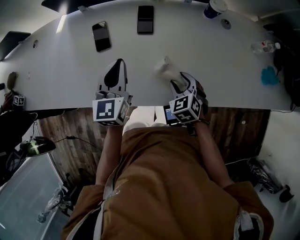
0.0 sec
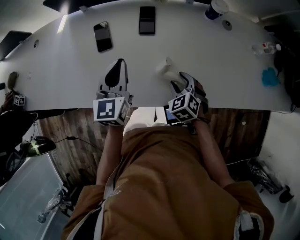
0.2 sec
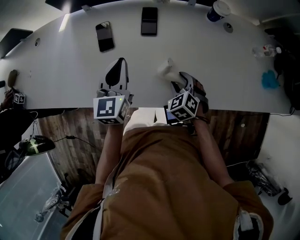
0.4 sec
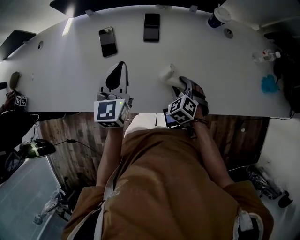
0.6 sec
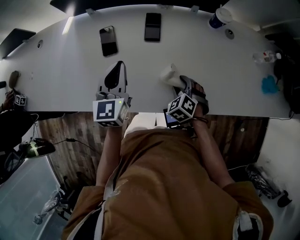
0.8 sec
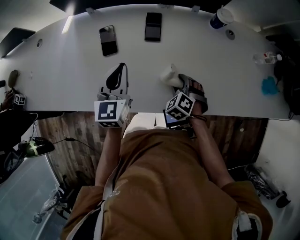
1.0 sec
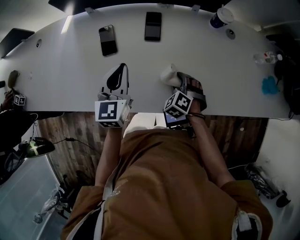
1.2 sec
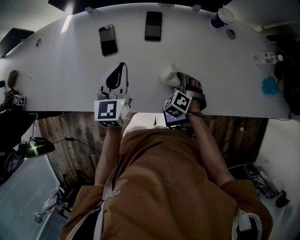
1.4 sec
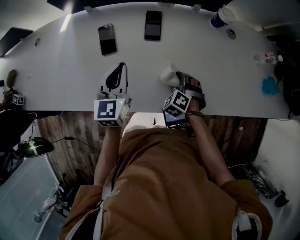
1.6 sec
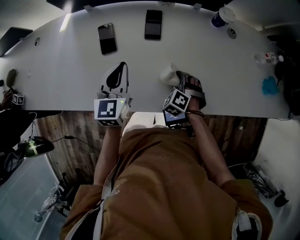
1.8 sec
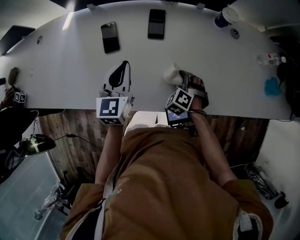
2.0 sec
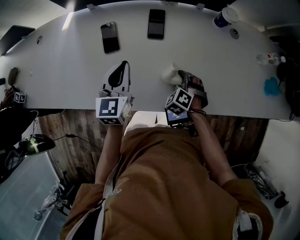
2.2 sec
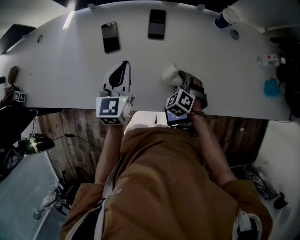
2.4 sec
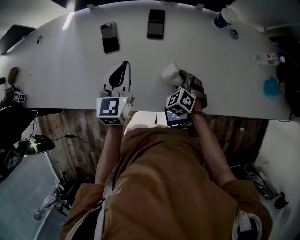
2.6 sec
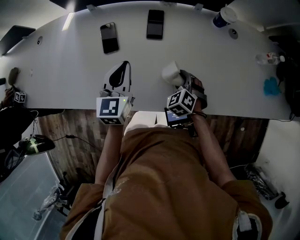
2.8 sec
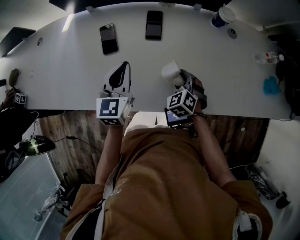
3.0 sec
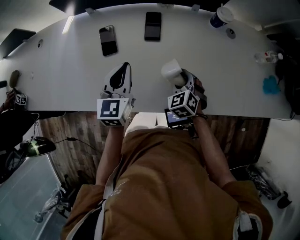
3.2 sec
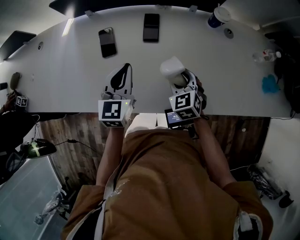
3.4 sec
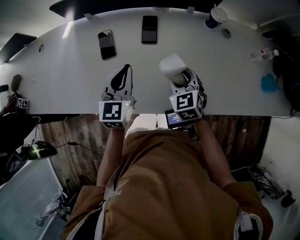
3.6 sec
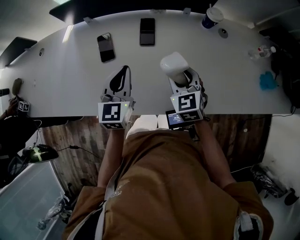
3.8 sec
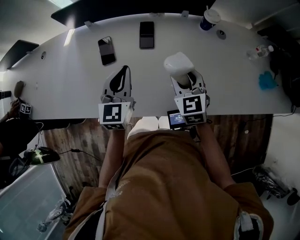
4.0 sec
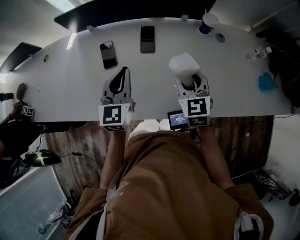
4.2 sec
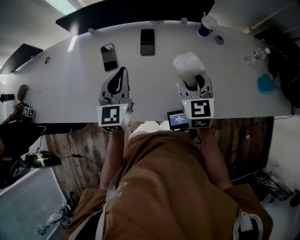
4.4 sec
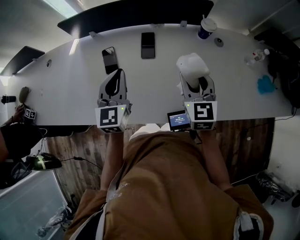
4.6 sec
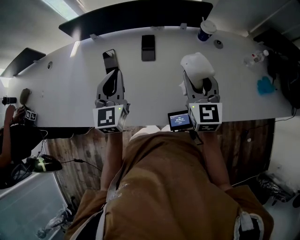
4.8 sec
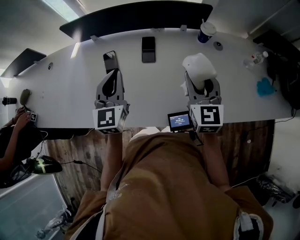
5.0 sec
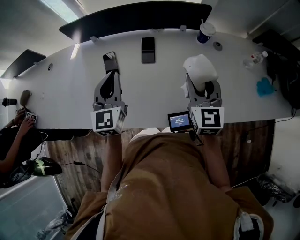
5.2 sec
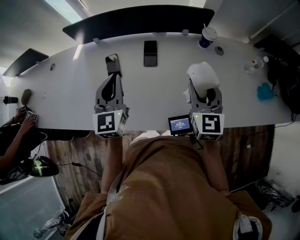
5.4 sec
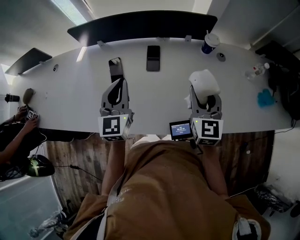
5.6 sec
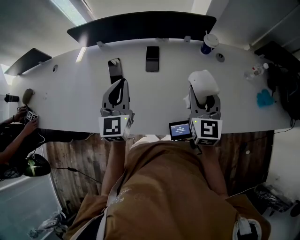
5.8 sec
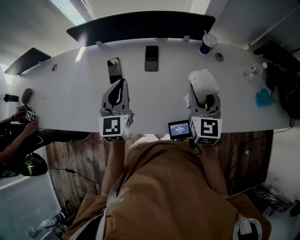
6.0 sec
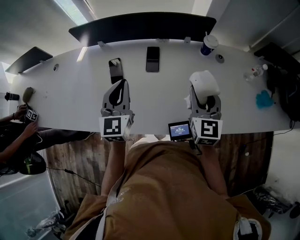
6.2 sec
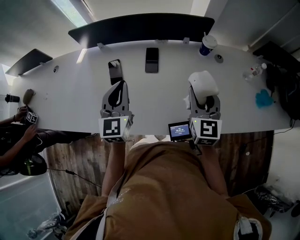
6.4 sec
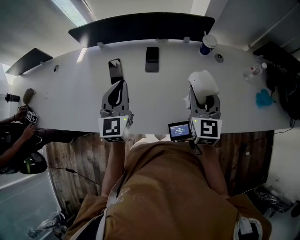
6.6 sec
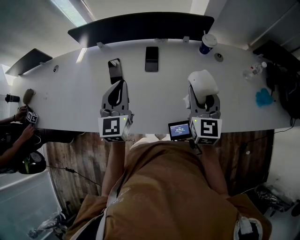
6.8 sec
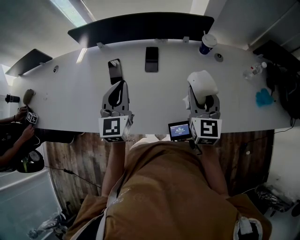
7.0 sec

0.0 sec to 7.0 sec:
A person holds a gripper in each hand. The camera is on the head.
0.0 sec to 1.4 sec: The right gripper moves downward, some 5 cm, and turns by approximately 30 degrees.
1.4 sec to 2.8 sec: The grippers make only small movements.
2.8 sec to 4.2 sec: The right gripper travels upward by approximately 20 cm, and angles its fingers upward, by approximately 30 degrees. The left gripper heads upward, covering about 5 cm.
4.2 sec to 5.6 sec: The right gripper heads upward, covering approximately 5 cm.
5.6 sec to 7.0 sec: Both grippers stay about where they are.

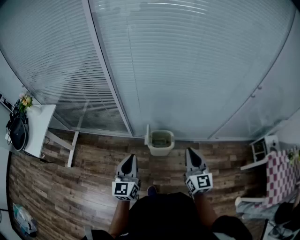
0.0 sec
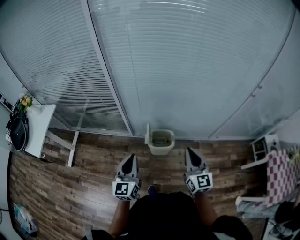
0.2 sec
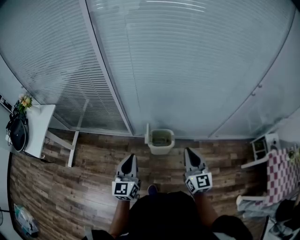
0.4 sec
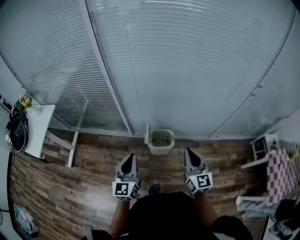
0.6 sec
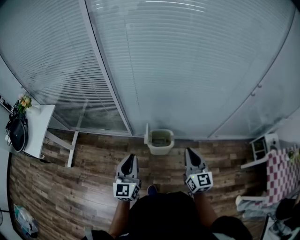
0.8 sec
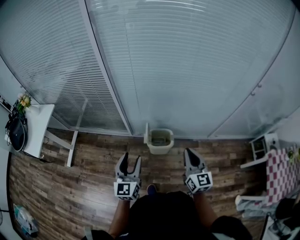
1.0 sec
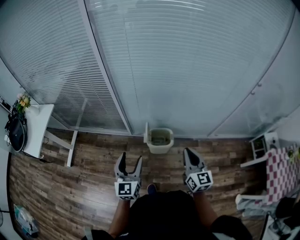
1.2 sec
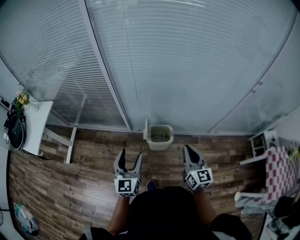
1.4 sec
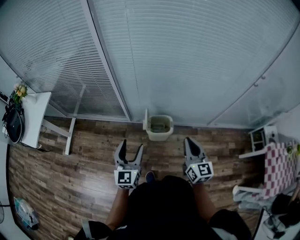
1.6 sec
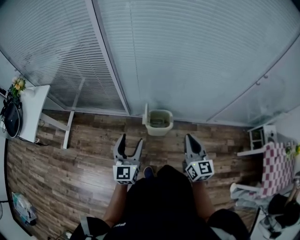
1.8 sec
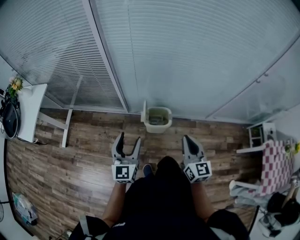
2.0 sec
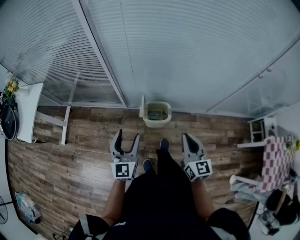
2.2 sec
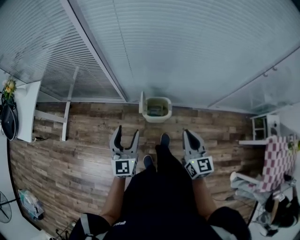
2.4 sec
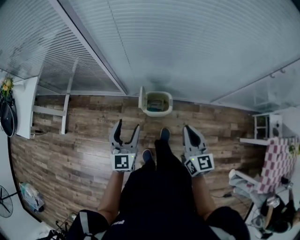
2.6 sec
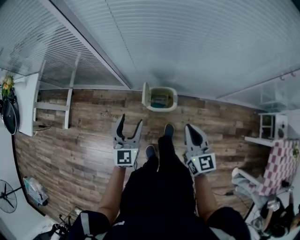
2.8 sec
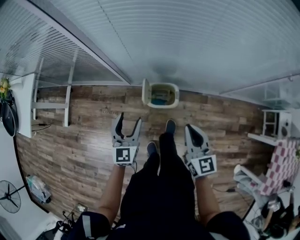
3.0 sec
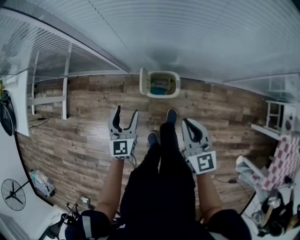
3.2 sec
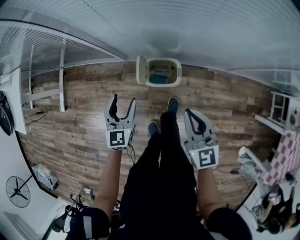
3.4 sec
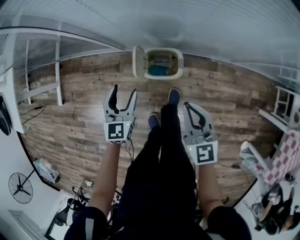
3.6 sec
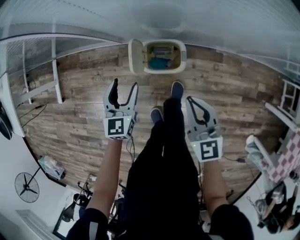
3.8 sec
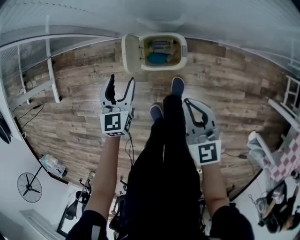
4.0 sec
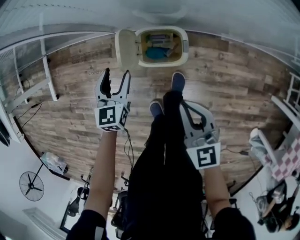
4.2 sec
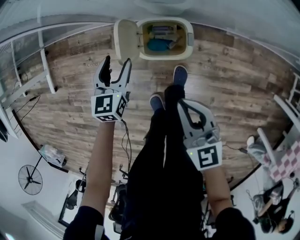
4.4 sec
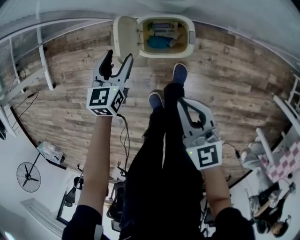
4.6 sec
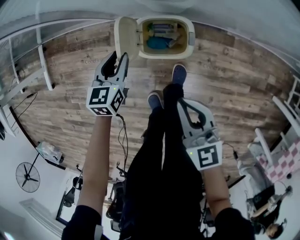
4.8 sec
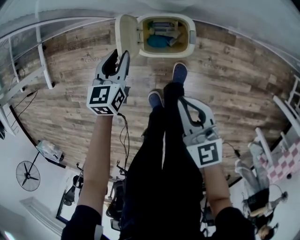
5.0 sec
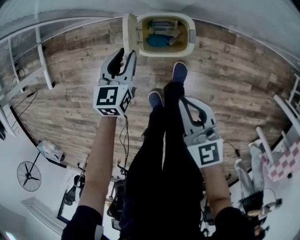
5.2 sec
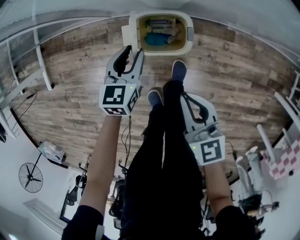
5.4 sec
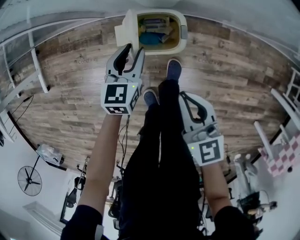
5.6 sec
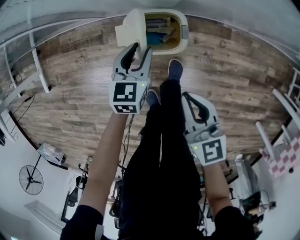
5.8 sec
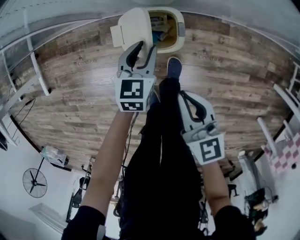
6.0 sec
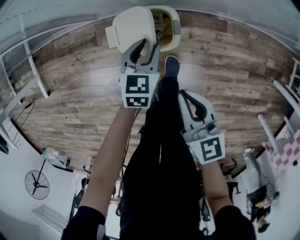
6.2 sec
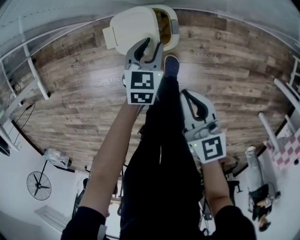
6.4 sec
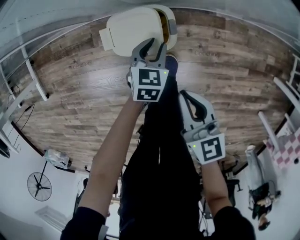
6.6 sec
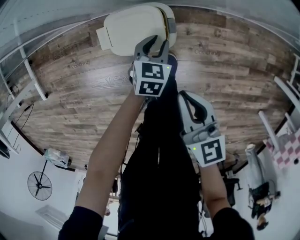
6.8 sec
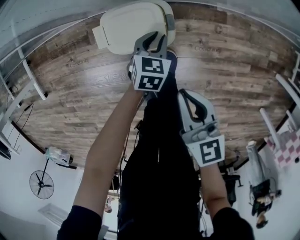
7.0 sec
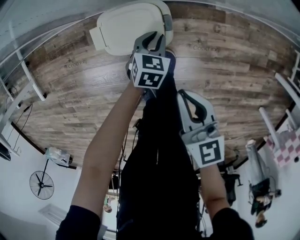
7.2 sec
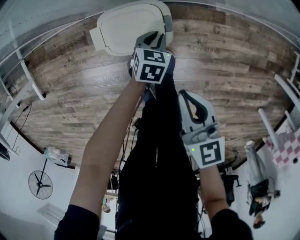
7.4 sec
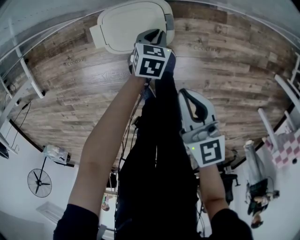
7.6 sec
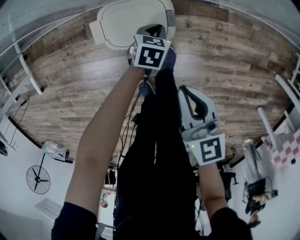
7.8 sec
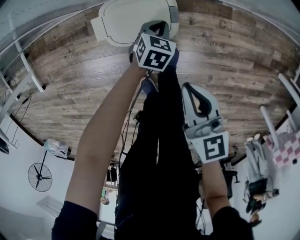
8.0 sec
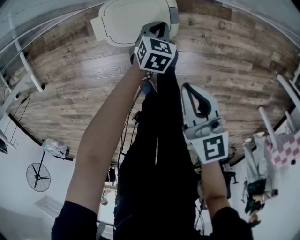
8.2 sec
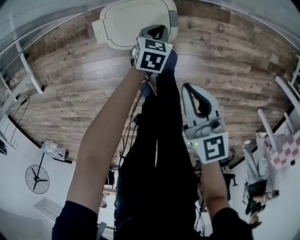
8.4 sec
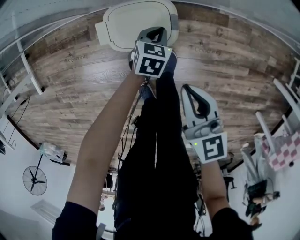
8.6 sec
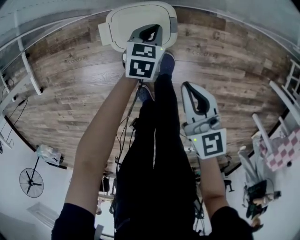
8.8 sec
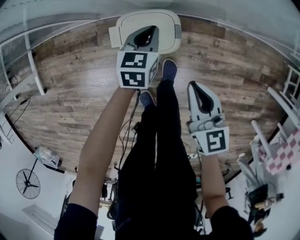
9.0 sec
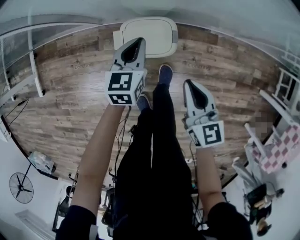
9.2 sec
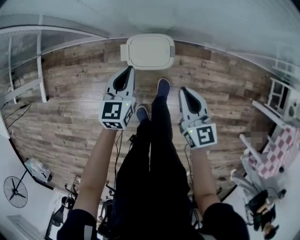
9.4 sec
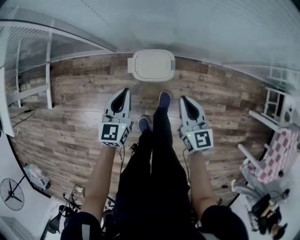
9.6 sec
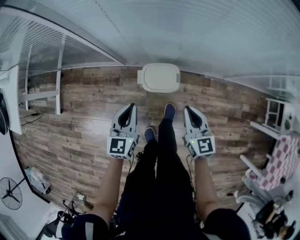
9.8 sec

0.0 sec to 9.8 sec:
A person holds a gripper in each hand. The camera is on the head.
0.0 sec to 1.4 sec: The left gripper opens its fingers.
1.4 sec to 2.8 sec: The right gripper travels forward by roughly 5 cm; the left gripper moves forward, downward and to the right, roughly 15 cm.
2.8 sec to 4.2 sec: The grippers both shift downward by some 25 cm. The left gripper rotates about 30 degrees.
4.2 sec to 5.6 sec: The left gripper heads to the right, covering roughly 10 cm, and closes.
5.6 sec to 7.0 sec: The left gripper heads to the right and downward, covering some 20 cm; the right gripper moves roughly 5 cm.
7.0 sec to 8.4 sec: The left gripper is displaced downward by approximately 5 cm.
8.4 sec to 9.8 sec: The left gripper is displaced upward and to the left by approximately 50 cm, and tilts its fingers approximately 40 degrees upward. Meanwhile the right gripper shifts roughly 15 cm upward.

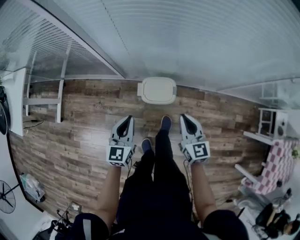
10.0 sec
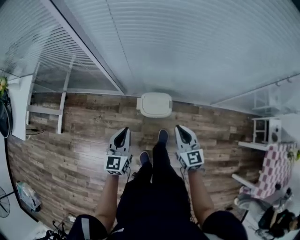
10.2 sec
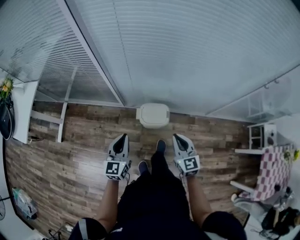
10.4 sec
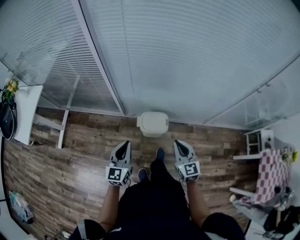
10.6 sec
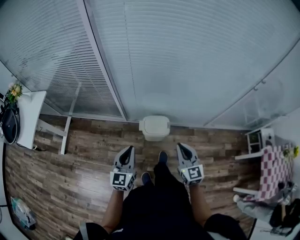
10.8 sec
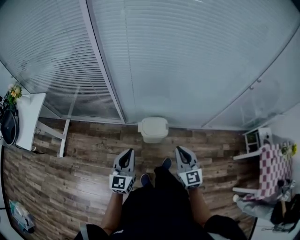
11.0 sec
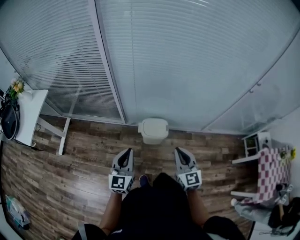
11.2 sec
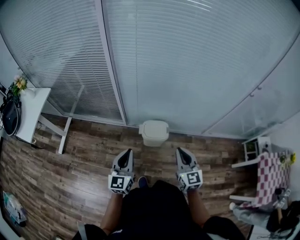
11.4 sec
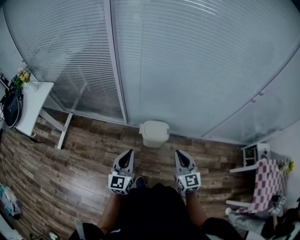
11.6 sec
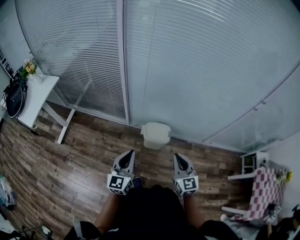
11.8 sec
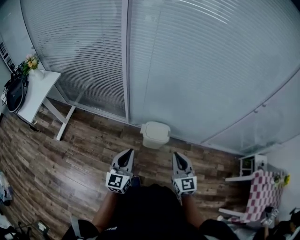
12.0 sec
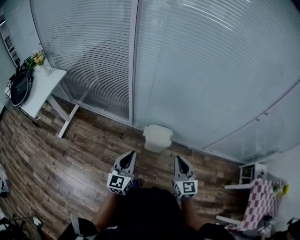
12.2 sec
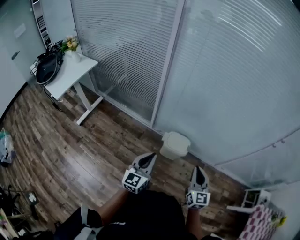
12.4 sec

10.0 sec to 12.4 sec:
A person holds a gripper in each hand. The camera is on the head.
10.0 sec to 11.2 sec: The right gripper is displaced backward and upward by some 20 cm; the left gripper shifts about 20 cm upward and backward.
11.2 sec to 12.4 sec: The right gripper shifts approximately 5 cm to the right.

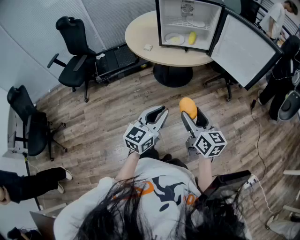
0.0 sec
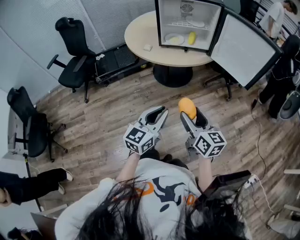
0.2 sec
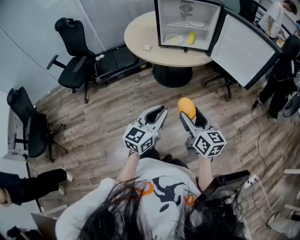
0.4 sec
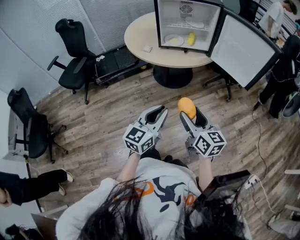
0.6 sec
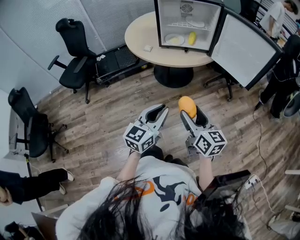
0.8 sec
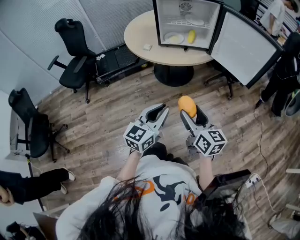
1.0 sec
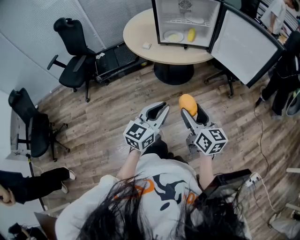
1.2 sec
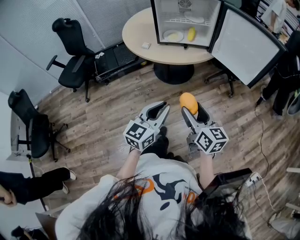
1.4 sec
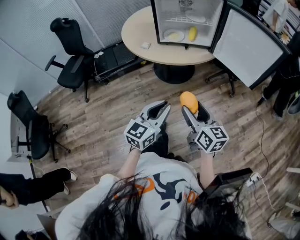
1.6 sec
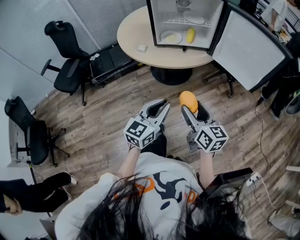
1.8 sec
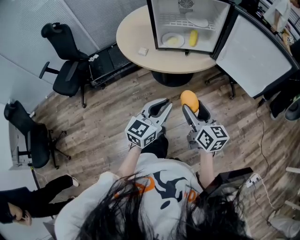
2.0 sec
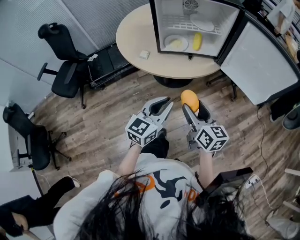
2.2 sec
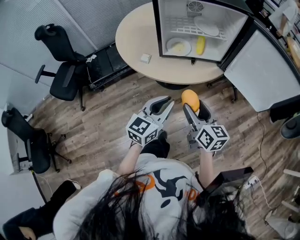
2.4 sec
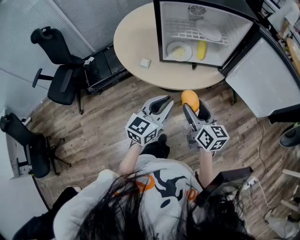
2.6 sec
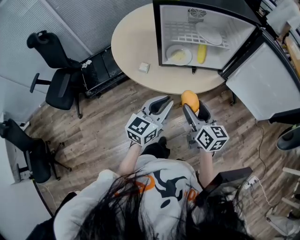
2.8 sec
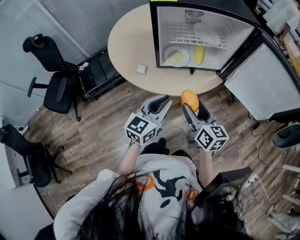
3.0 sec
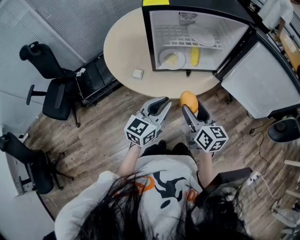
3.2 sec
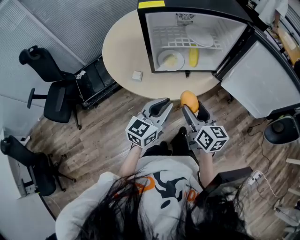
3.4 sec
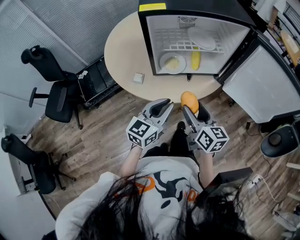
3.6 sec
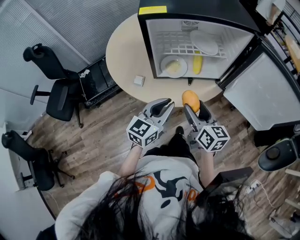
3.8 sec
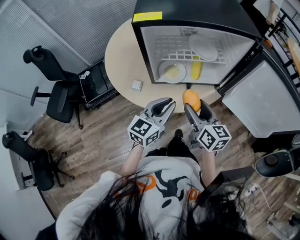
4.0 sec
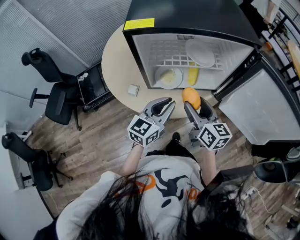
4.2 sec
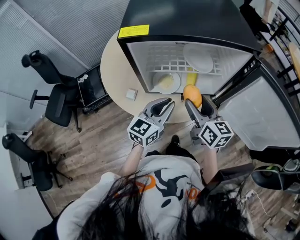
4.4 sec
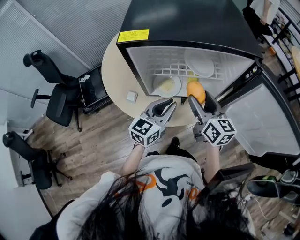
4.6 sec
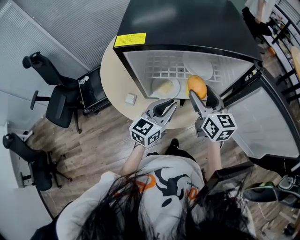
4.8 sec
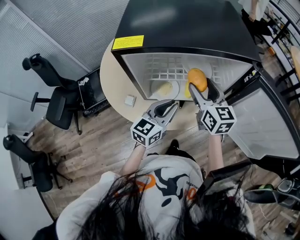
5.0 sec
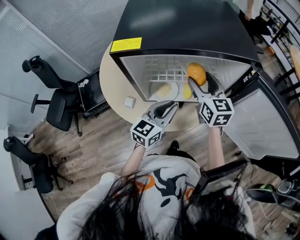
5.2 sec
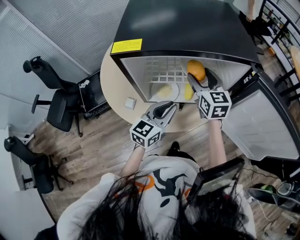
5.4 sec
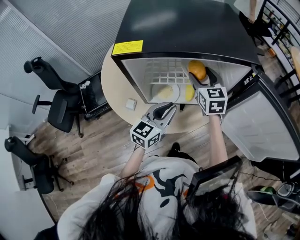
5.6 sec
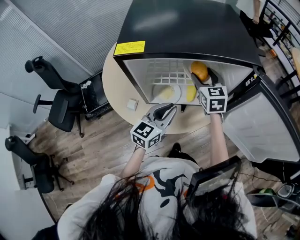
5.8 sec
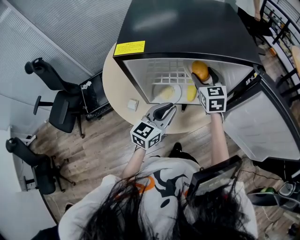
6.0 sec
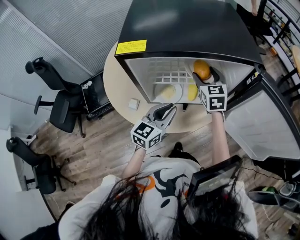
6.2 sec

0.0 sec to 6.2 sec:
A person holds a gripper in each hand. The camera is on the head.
0.0 sec to 1.6 sec: Both grippers travel together forward, some 5 cm.
1.6 sec to 3.2 sec: The two grippers go some 30 cm forward.
3.2 sec to 4.6 sec: The two grippers go roughly 20 cm forward.
4.6 sec to 6.2 sec: The right gripper travels forward by roughly 15 cm, and changes its angle by some 30 degrees.
